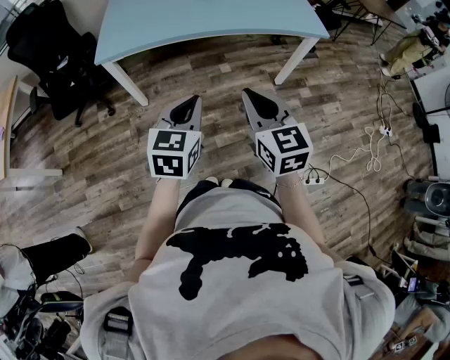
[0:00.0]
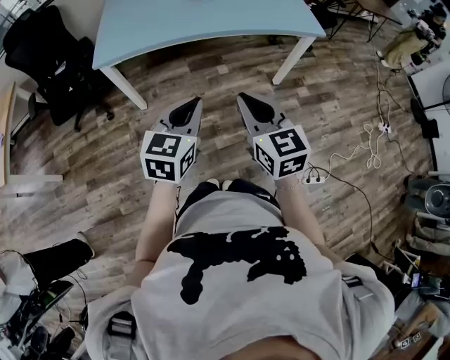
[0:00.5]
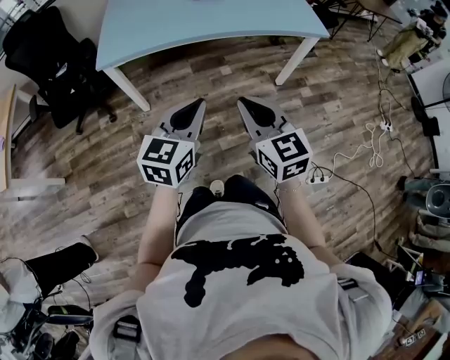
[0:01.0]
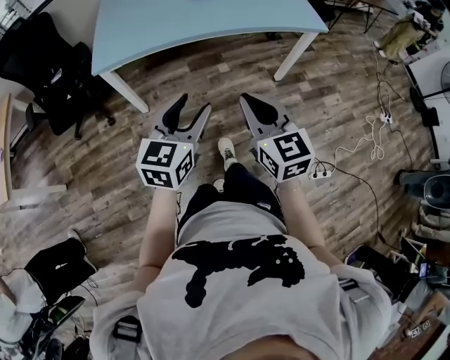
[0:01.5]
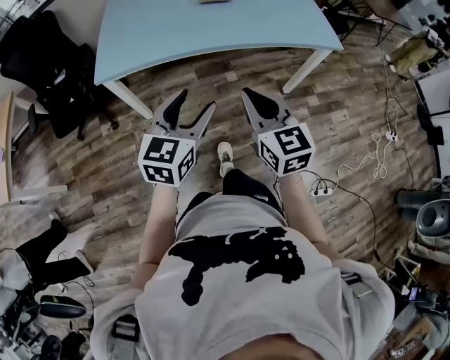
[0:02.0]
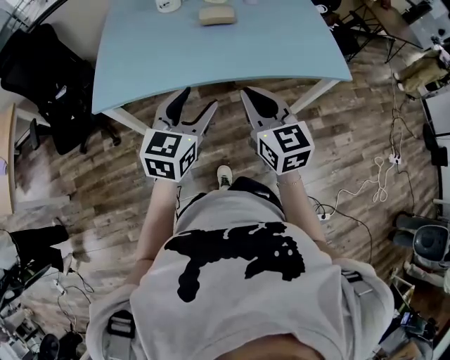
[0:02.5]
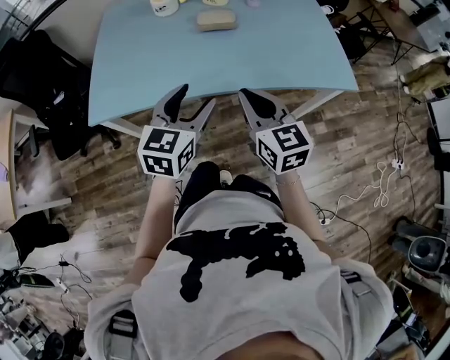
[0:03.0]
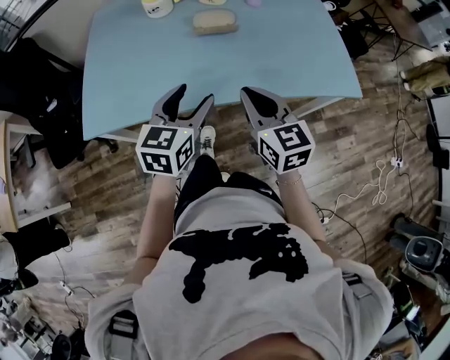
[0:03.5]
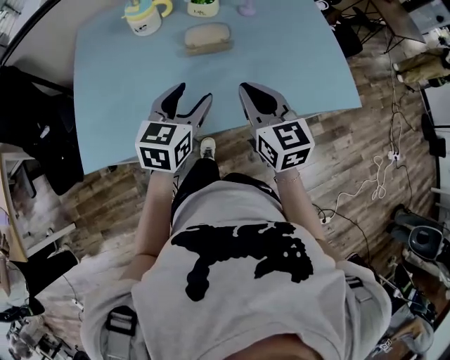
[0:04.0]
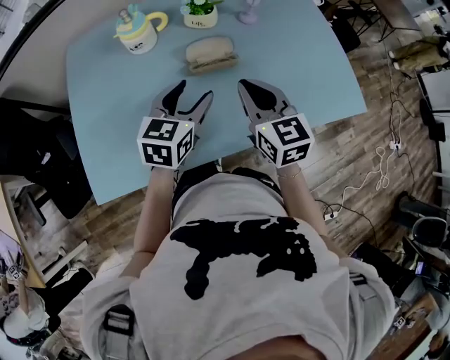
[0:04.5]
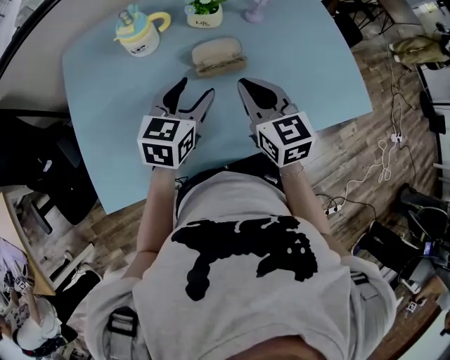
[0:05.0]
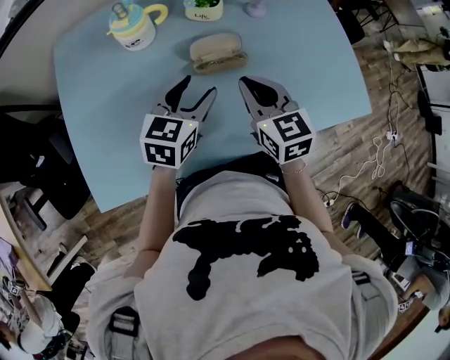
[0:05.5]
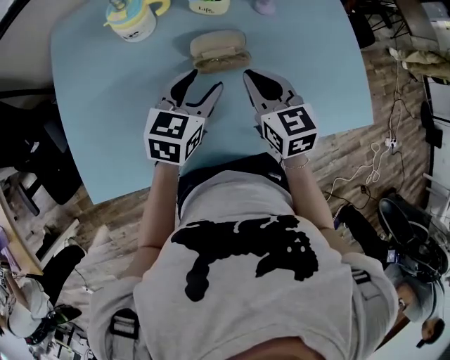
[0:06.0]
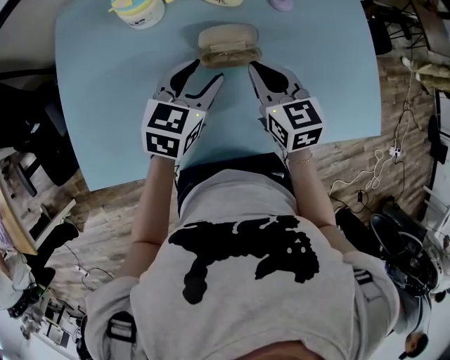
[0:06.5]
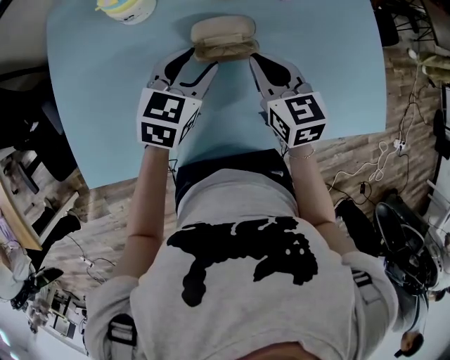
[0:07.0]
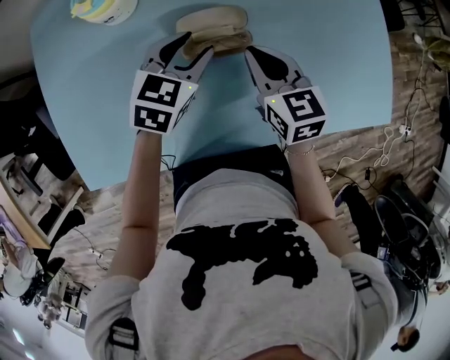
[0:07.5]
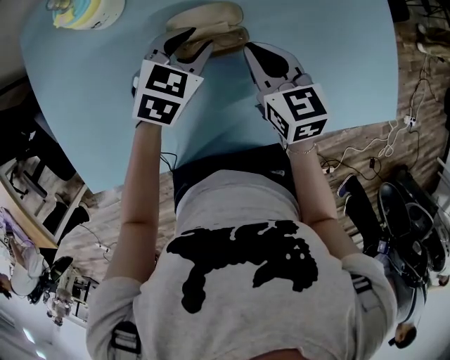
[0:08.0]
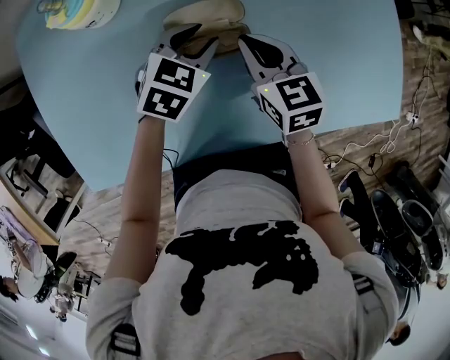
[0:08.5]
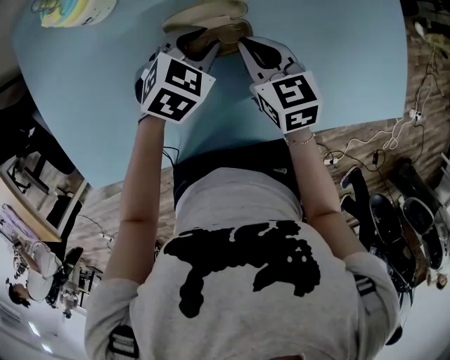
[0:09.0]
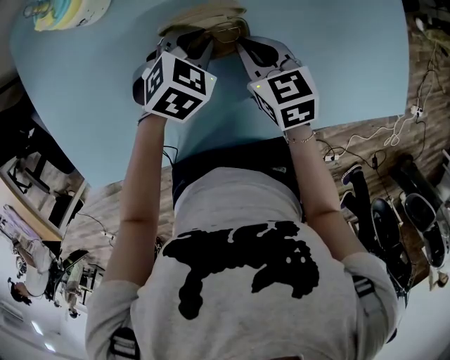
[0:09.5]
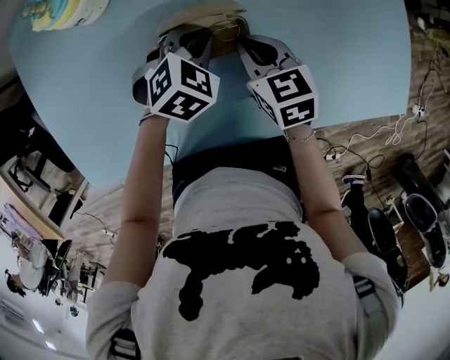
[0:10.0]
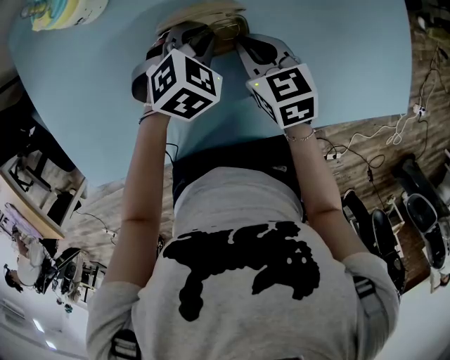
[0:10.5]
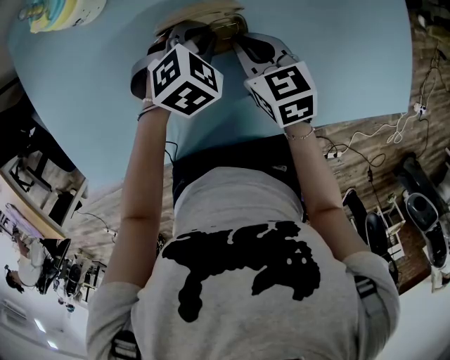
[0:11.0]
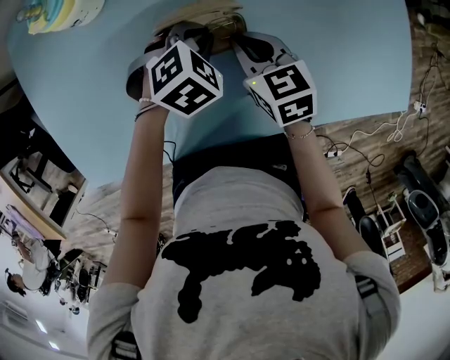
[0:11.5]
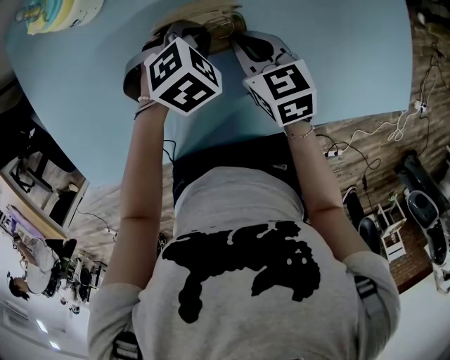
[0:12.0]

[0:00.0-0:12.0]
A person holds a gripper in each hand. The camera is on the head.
0:00.0 to 0:02.0: The grippers both shift forward by approximately 10 cm. The left gripper opens its fingers.
0:02.0 to 0:04.0: The grippers both shift forward by roughly 40 cm.
0:04.0 to 0:06.0: The two grippers go roughly 15 cm forward.
0:06.0 to 0:08.0: The right gripper is displaced downward and forward by some 10 cm, while the left gripper is displaced forward, downward and to the right by roughly 15 cm, and rotates approximately 20 degrees.
0:08.0 to 0:10.0: The grippers both shift downward by approximately 5 cm. The left gripper closes.
0:10.0 to 0:12.0: There are only small adjustments of the grippers.

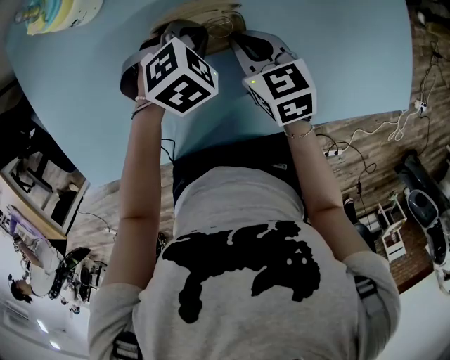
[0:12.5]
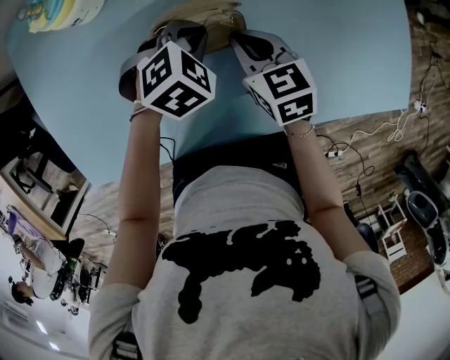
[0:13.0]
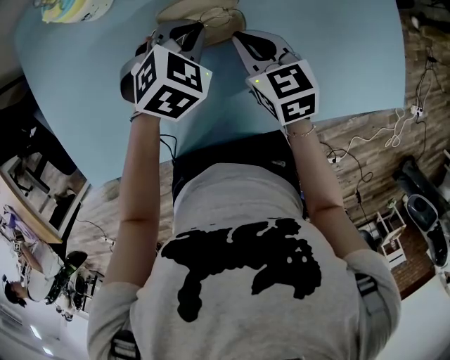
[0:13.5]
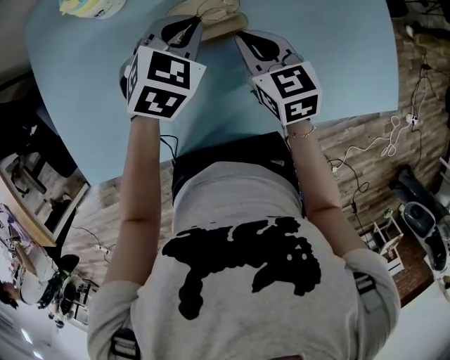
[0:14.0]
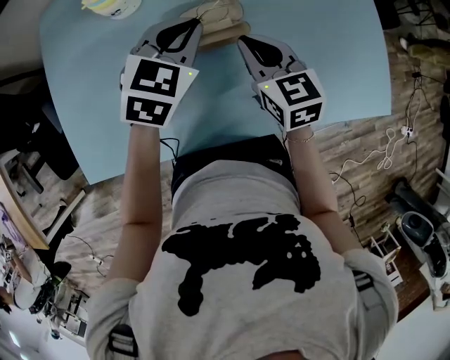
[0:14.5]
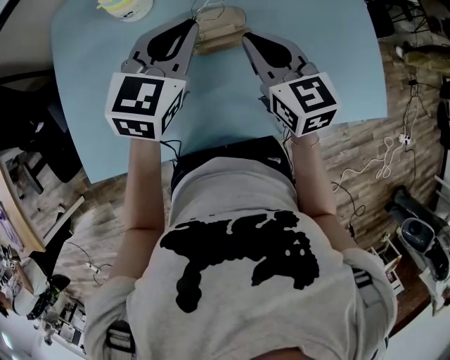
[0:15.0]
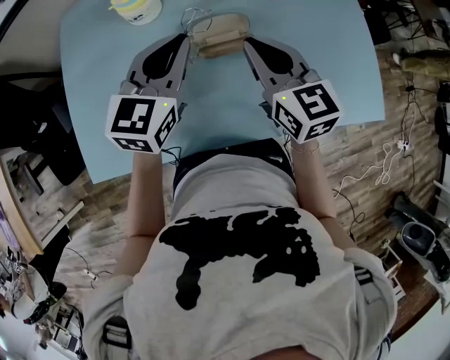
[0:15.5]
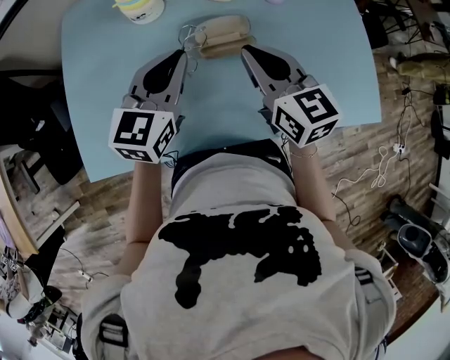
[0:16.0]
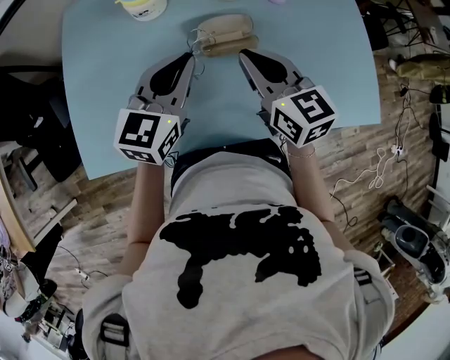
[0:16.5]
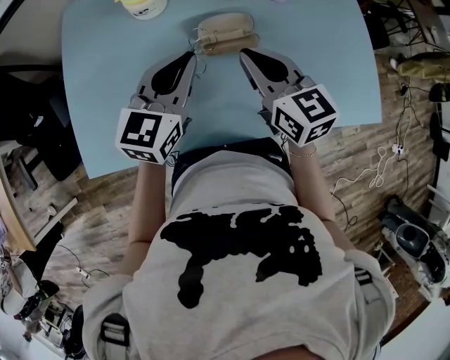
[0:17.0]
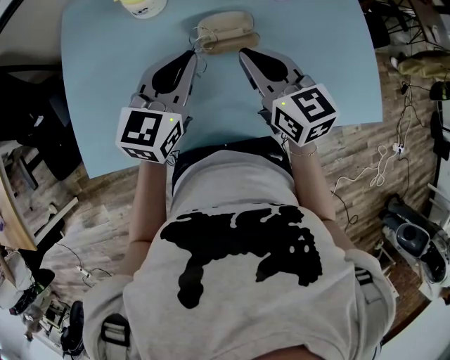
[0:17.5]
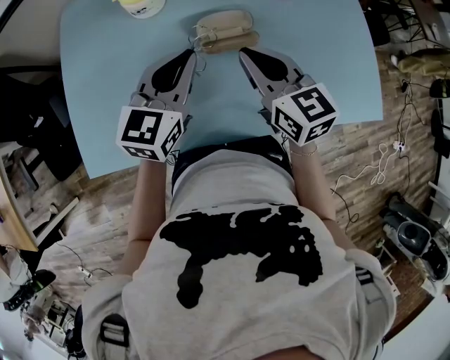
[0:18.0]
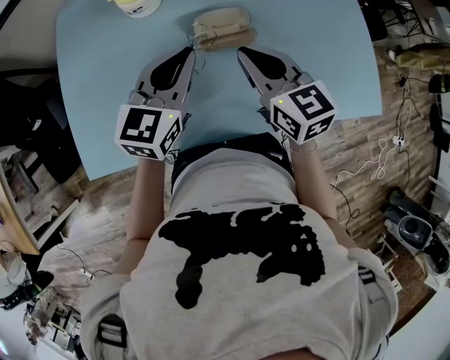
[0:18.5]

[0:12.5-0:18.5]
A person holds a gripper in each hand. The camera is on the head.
0:12.5 to 0:14.5: The right gripper goes approximately 10 cm upward, while the left gripper goes roughly 15 cm upward, and points its fingers approximately 30 degrees further upward.
0:14.5 to 0:16.5: The right gripper shifts about 10 cm upward; the left gripper moves backward and to the left, roughly 10 cm, and changes its angle by some 30 degrees.
0:16.5 to 0:18.5: There are only small adjustments of the grippers.

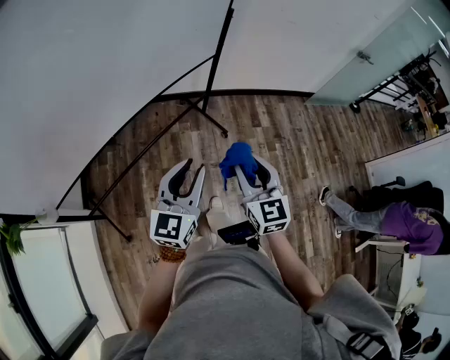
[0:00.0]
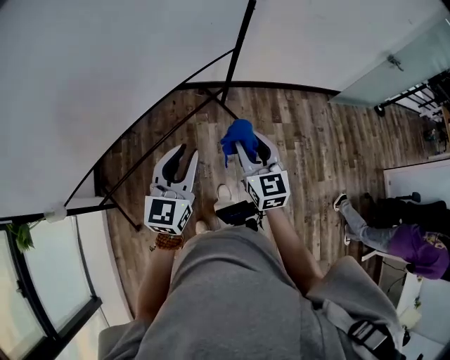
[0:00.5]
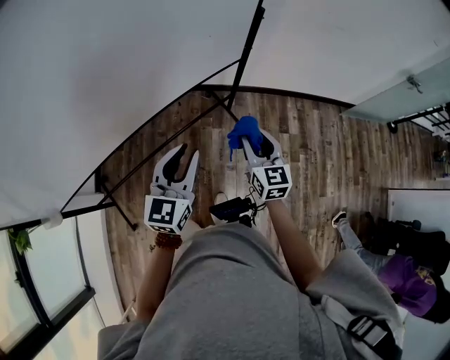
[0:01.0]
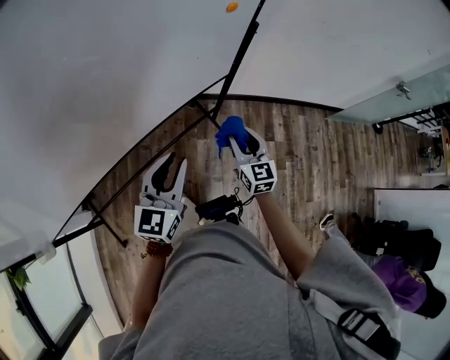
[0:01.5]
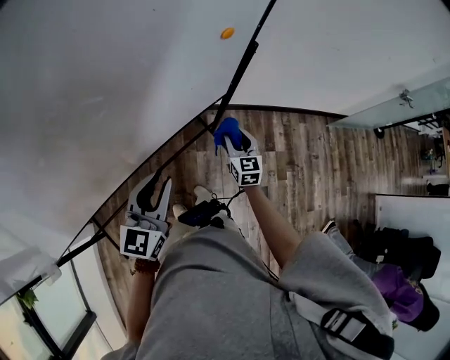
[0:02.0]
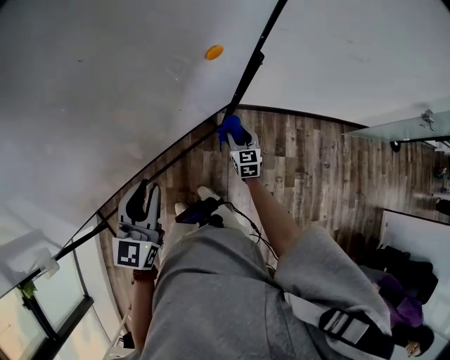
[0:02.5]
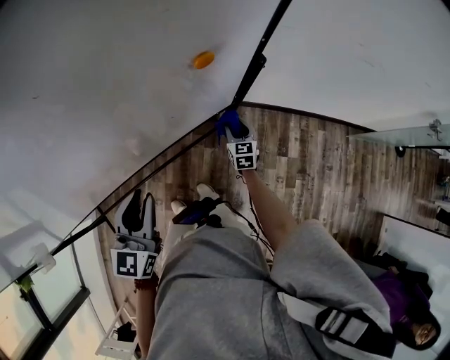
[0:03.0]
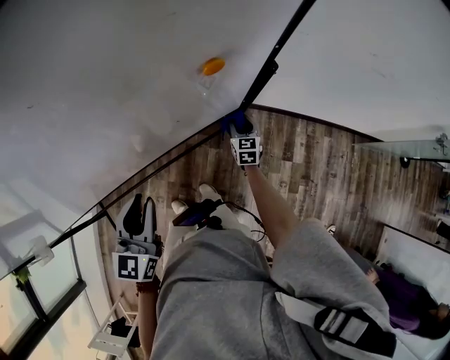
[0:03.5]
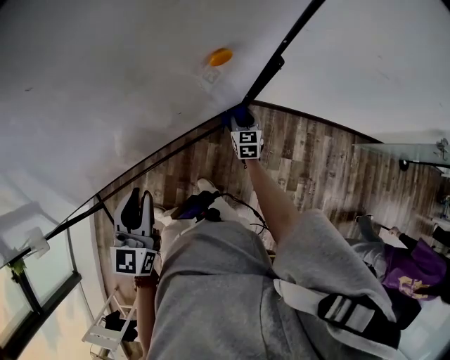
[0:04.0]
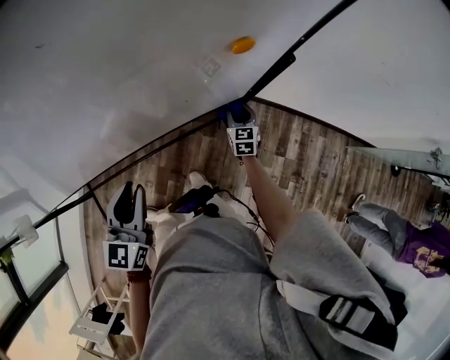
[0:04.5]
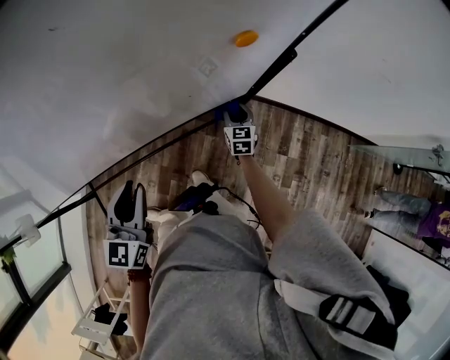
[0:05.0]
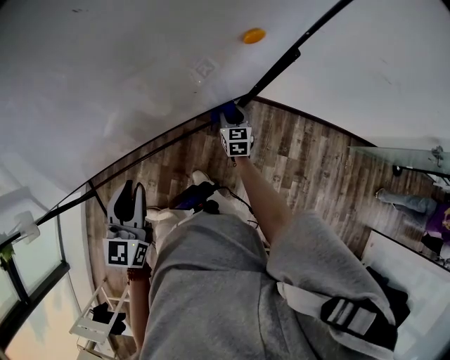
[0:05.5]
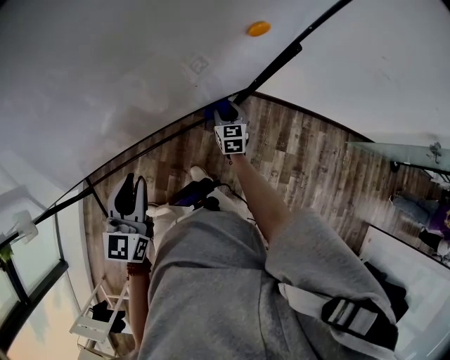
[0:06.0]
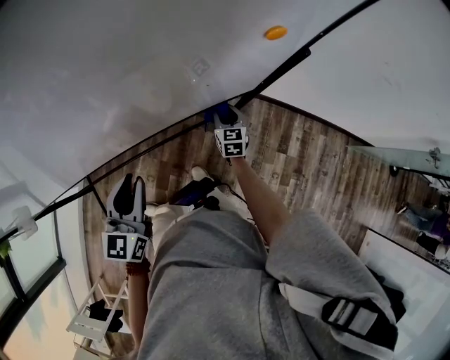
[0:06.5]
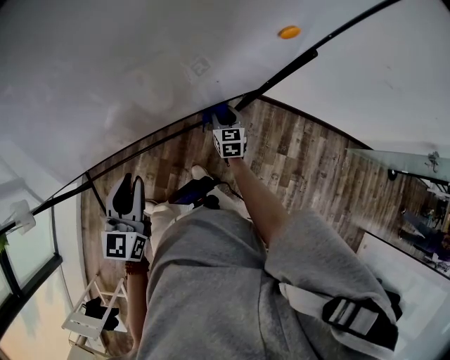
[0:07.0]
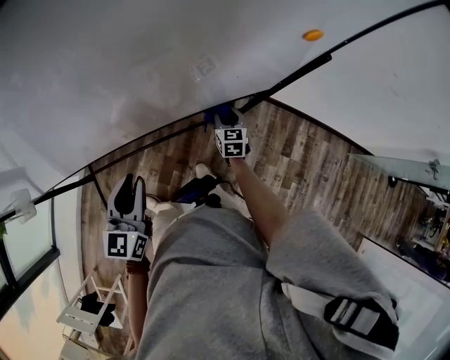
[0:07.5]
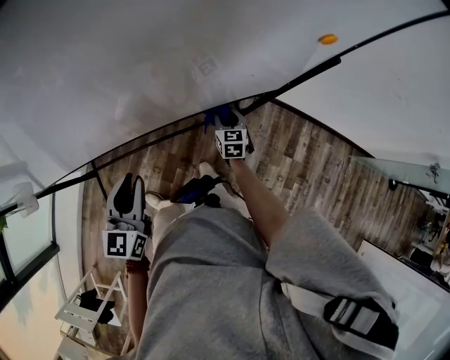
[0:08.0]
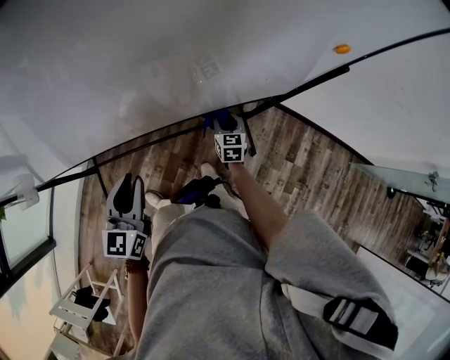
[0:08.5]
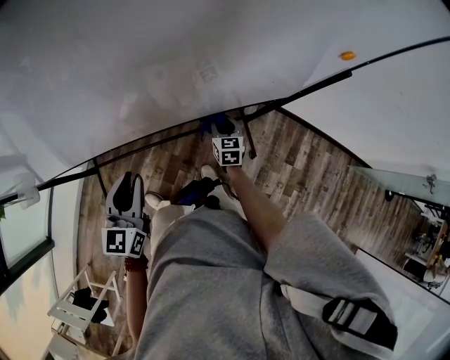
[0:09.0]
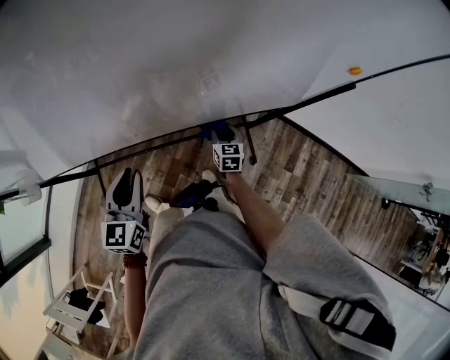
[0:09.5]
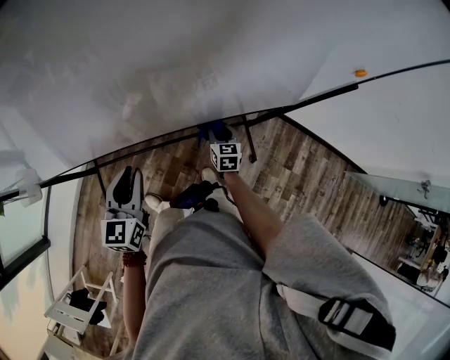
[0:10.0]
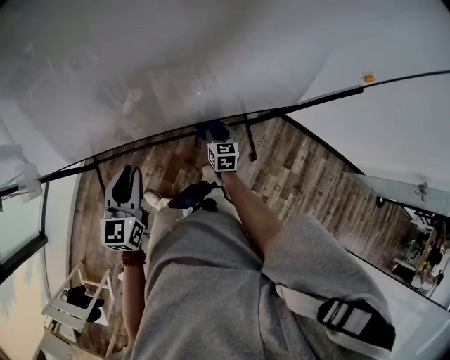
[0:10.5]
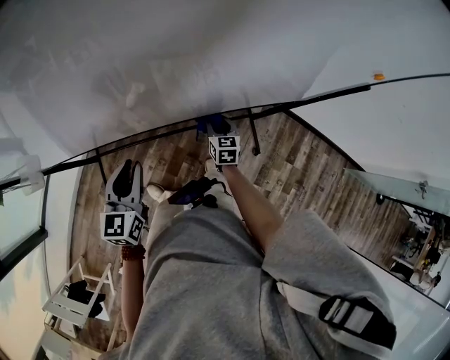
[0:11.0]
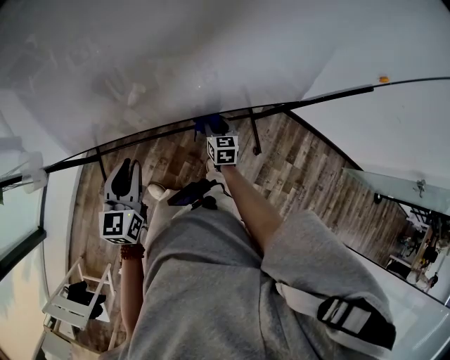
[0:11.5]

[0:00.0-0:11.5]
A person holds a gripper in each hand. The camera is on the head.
0:00.0 to 0:02.0: The left gripper goes approximately 40 cm forward. The right gripper heads forward and downward, covering about 60 cm.
0:02.0 to 0:04.0: The left gripper moves some 5 cm, and swivels about 20 degrees. The right gripper heads forward and downward, covering some 20 cm.
0:04.0 to 0:06.0: The right gripper is displaced to the left by about 10 cm.
0:06.0 to 0:07.5: Both grippers travel together to the left, approximately 10 cm.
0:07.5 to 0:09.5: The grippers both shift to the left by some 10 cm.
0:09.5 to 0:11.5: The two grippers go roughly 10 cm to the left.
